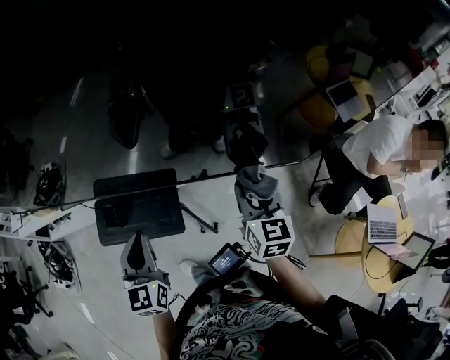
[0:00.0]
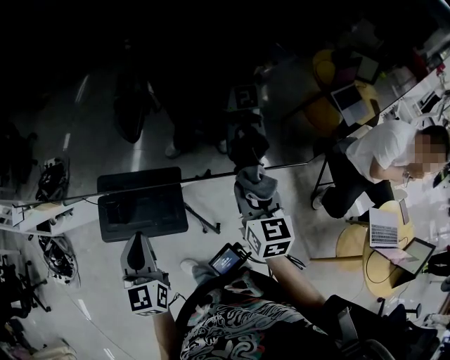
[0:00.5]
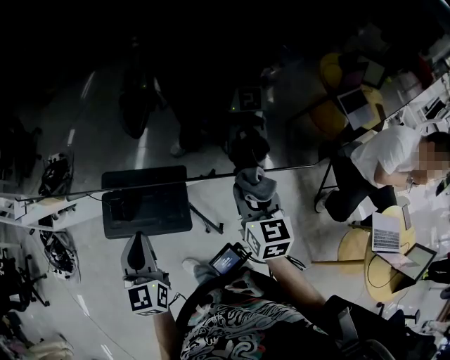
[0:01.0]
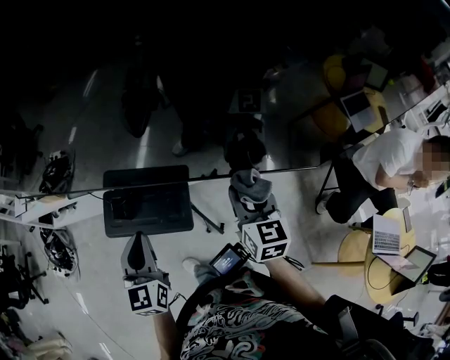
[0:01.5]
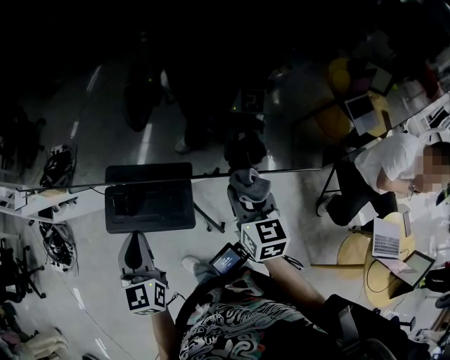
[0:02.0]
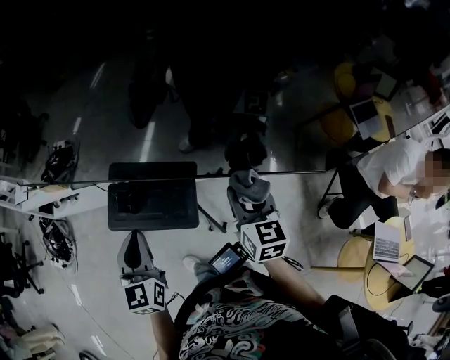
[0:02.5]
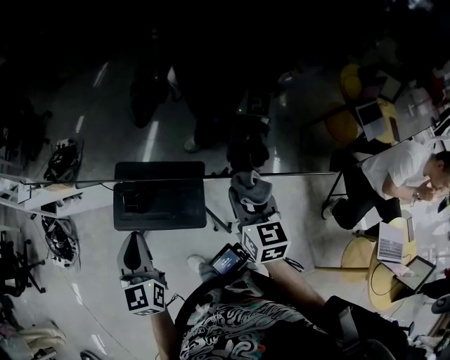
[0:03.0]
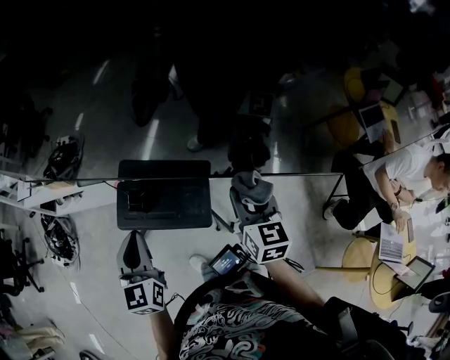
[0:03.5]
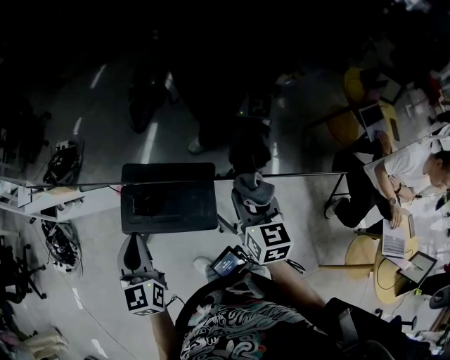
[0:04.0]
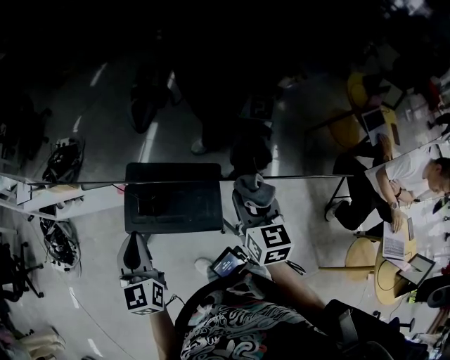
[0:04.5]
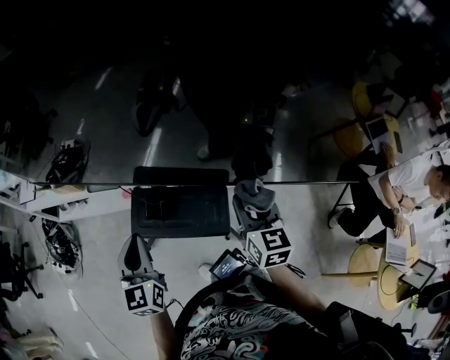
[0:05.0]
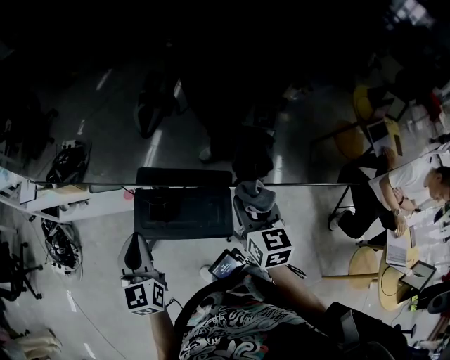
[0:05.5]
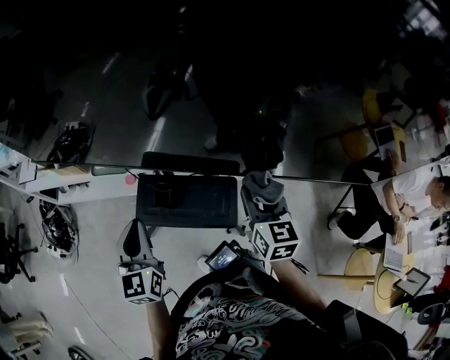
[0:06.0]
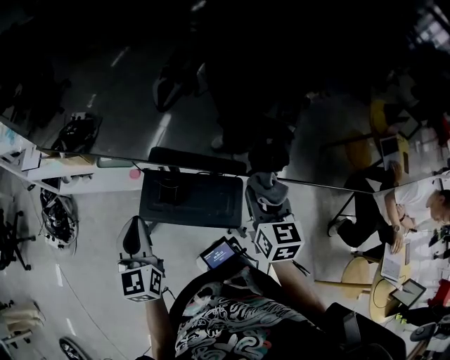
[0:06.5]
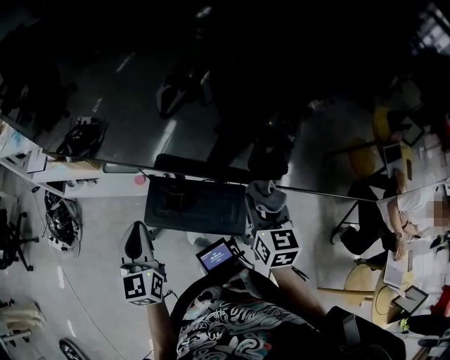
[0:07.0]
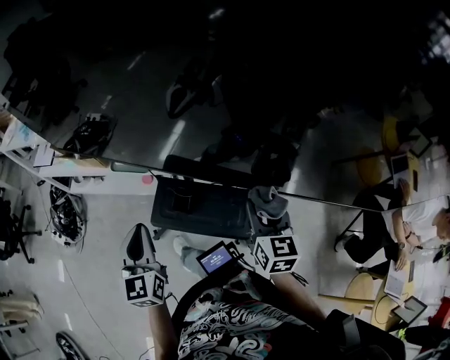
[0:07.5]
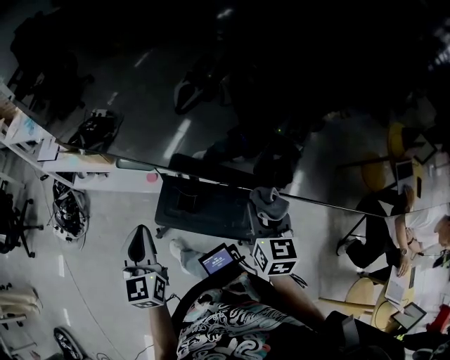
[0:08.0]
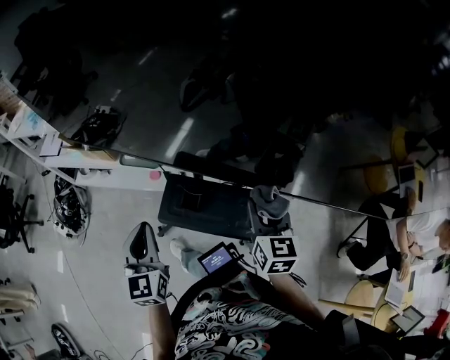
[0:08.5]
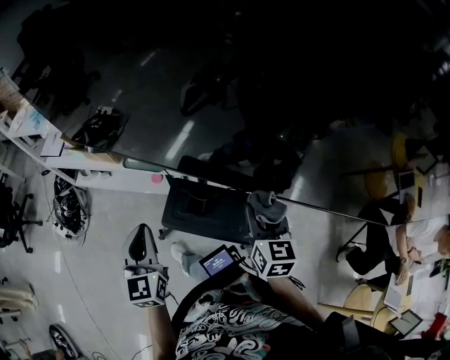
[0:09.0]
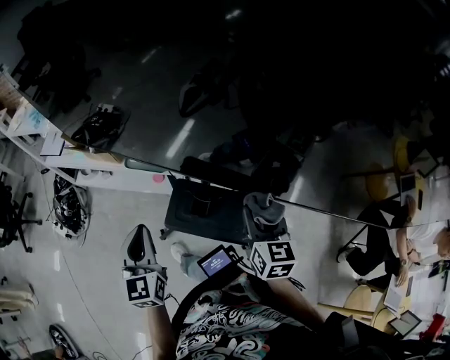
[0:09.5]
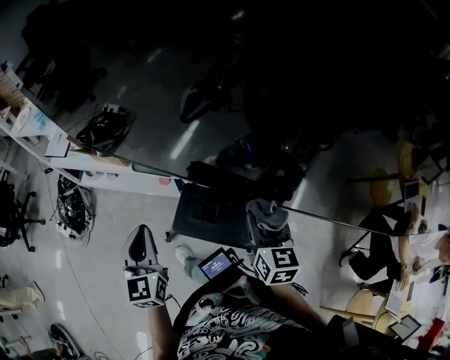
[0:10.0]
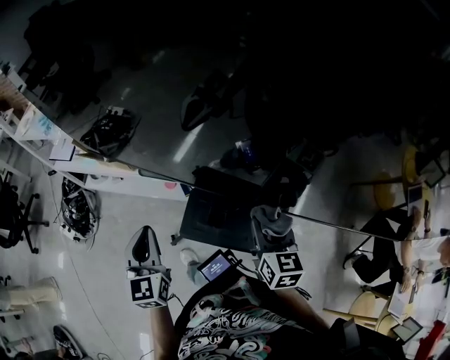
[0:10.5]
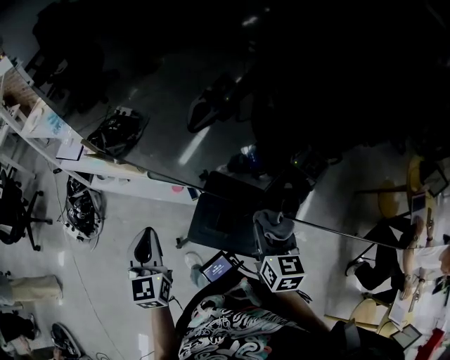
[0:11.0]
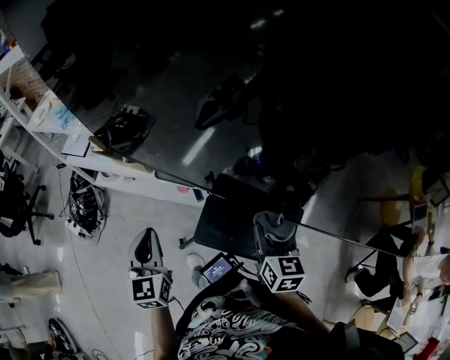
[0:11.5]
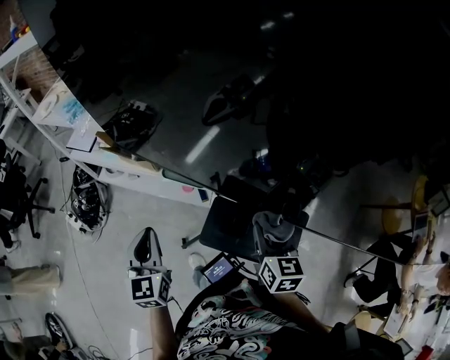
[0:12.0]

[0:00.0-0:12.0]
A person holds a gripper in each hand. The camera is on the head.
0:00.0 to 0:02.0: Both grippers travel together to the left, some 5 cm.
0:02.0 to 0:04.0: Both grippers move to the left, some 10 cm.
0:04.0 to 0:06.0: The two grippers go roughly 10 cm to the left.
0:06.0 to 0:08.0: Both grippers move to the left, roughly 5 cm.
0:08.0 to 0:10.0: The grippers both shift to the left and forward by some 10 cm.
0:10.0 to 0:12.0: The left gripper shifts some 10 cm to the left, while the right gripper moves to the left and forward, about 10 cm.

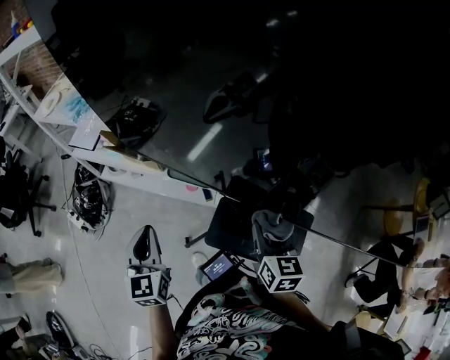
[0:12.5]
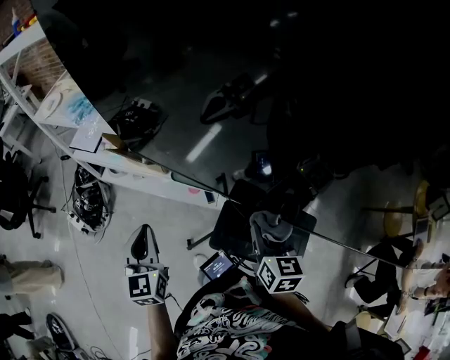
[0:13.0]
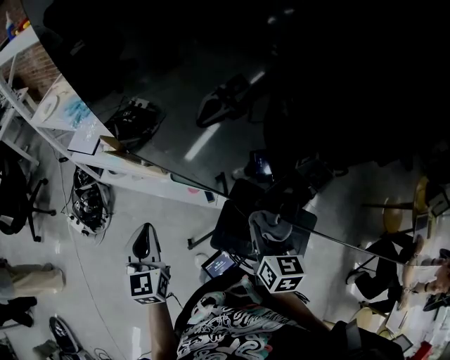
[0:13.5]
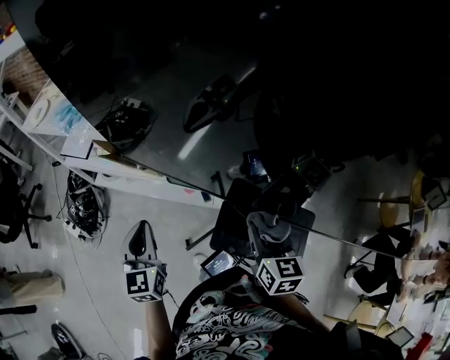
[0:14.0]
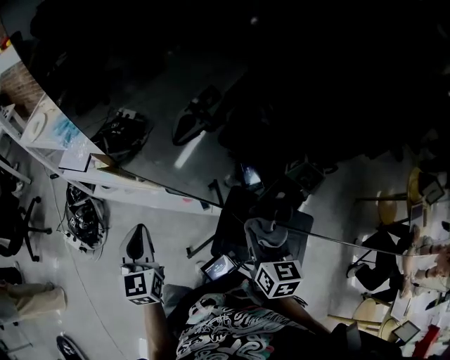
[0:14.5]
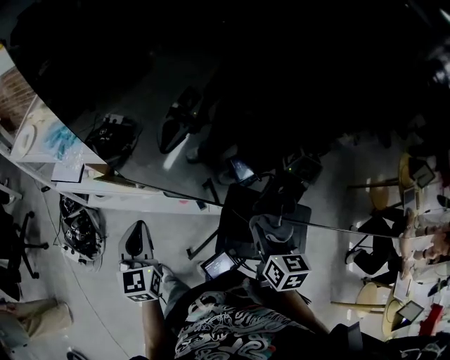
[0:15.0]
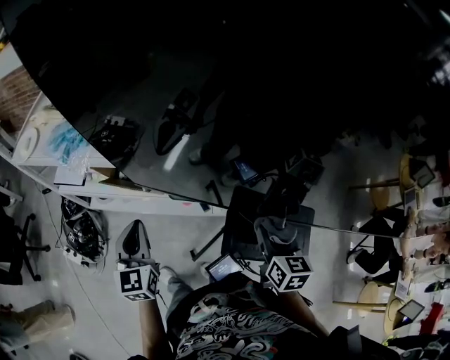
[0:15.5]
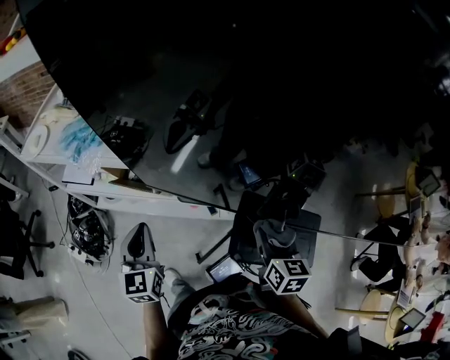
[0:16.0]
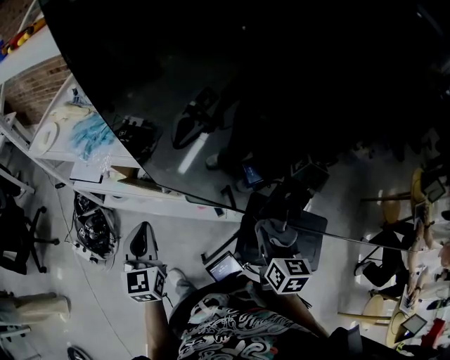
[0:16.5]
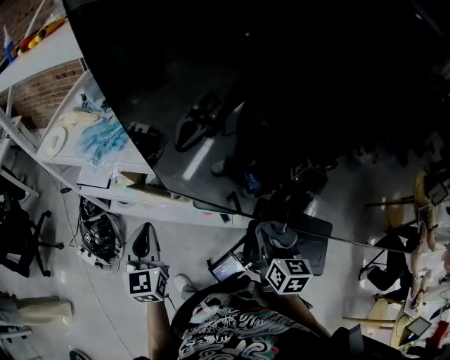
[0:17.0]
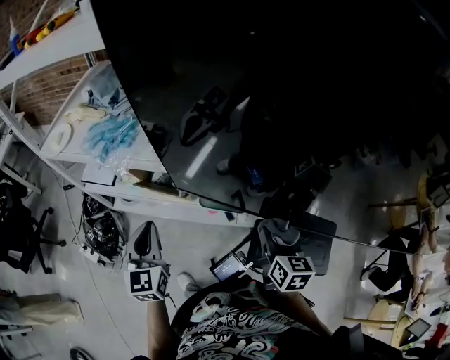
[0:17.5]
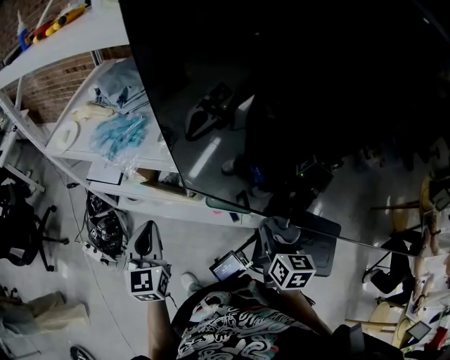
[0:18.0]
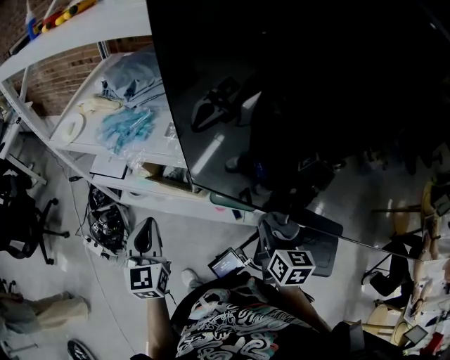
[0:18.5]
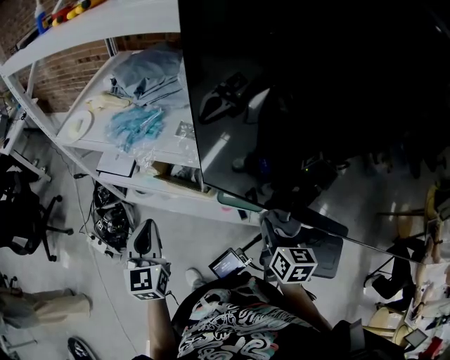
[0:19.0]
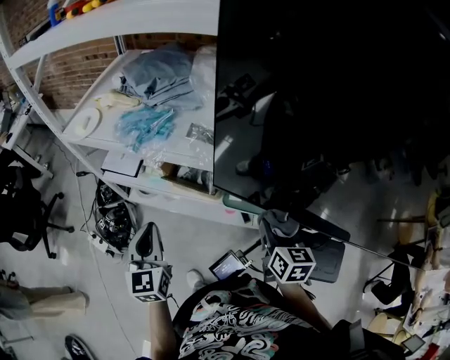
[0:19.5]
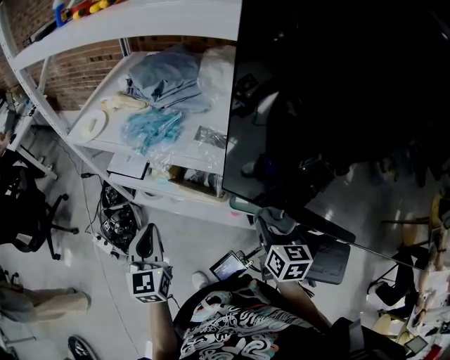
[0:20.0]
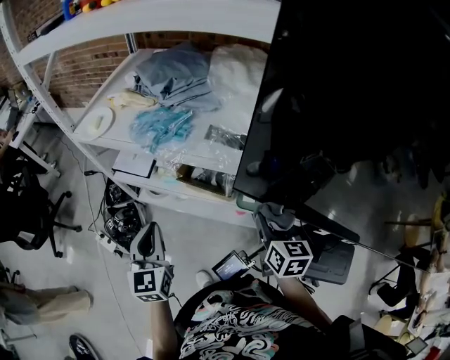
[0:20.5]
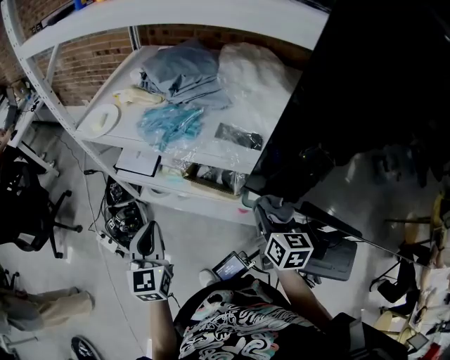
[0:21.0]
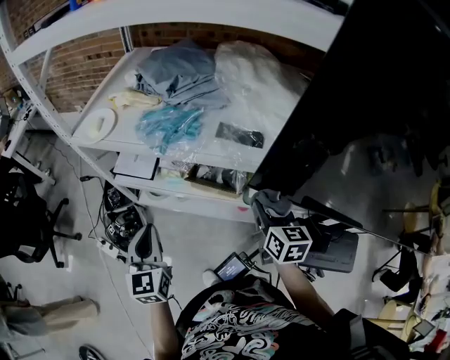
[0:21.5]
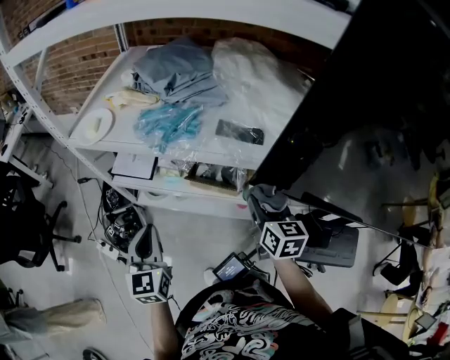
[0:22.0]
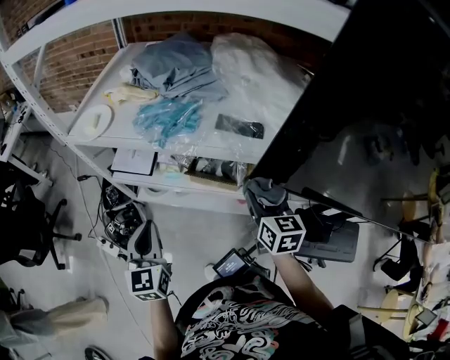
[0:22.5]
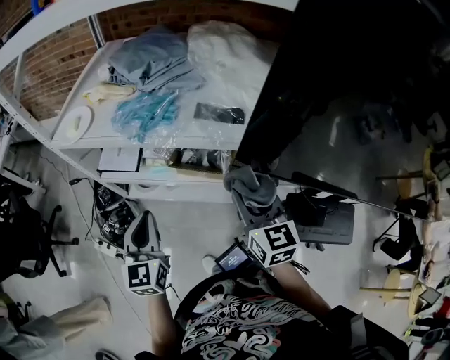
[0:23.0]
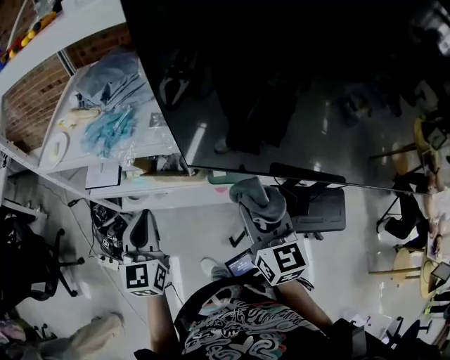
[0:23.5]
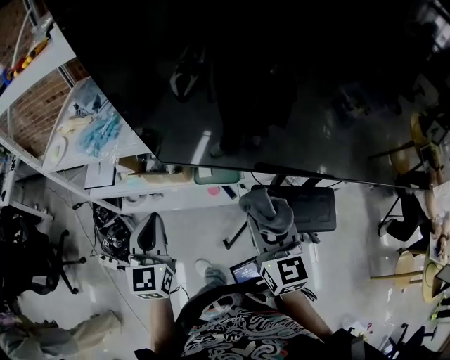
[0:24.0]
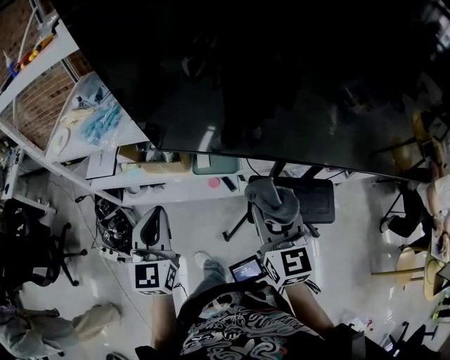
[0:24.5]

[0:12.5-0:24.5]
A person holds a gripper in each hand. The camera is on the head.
0:12.5 to 0:14.5: The right gripper moves roughly 5 cm; the left gripper heads forward, covering approximately 5 cm.
0:14.5 to 0:16.5: The left gripper heads to the left and forward, covering roughly 10 cm, while the right gripper shifts some 5 cm to the left.
0:16.5 to 0:18.5: The grippers both shift to the left by approximately 10 cm.
0:18.5 to 0:20.5: The right gripper is displaced to the left and forward by roughly 15 cm; the left gripper travels to the left by about 10 cm.
0:20.5 to 0:22.5: The grippers both shift to the left by approximately 10 cm.
0:22.5 to 0:24.5: The right gripper is displaced backward, to the right and upward by roughly 35 cm, and rotates some 20 degrees, while the left gripper goes some 35 cm to the right and backward, and swivels roughly 20 degrees.

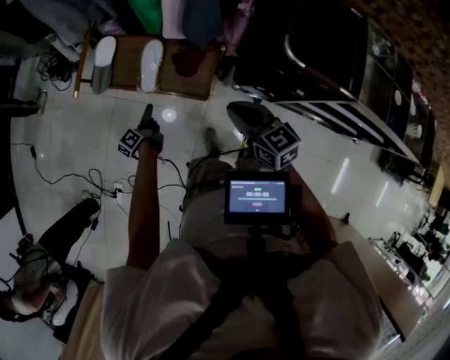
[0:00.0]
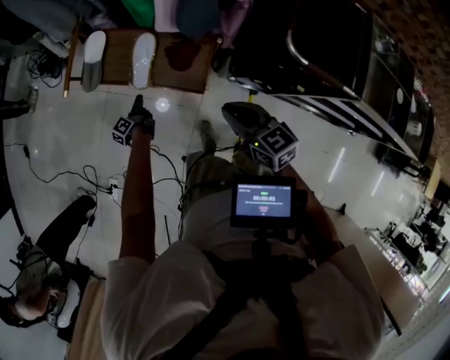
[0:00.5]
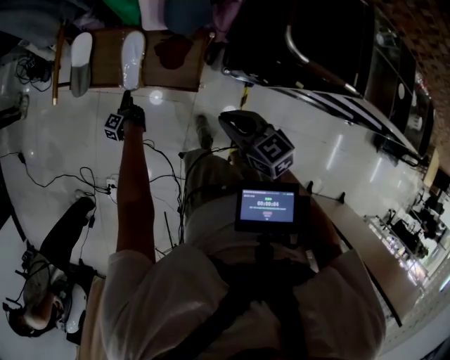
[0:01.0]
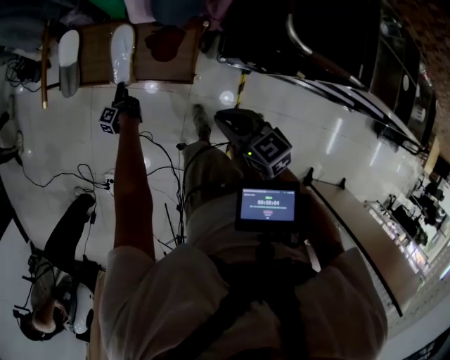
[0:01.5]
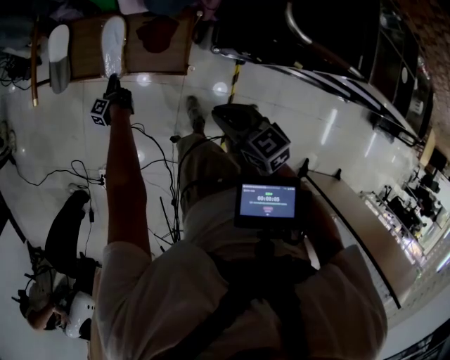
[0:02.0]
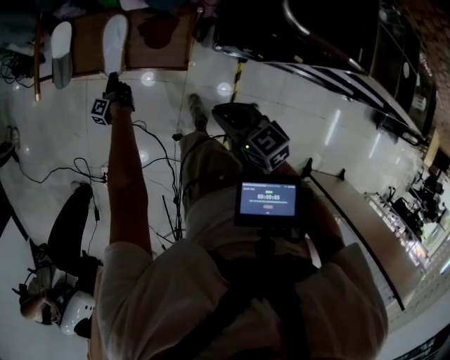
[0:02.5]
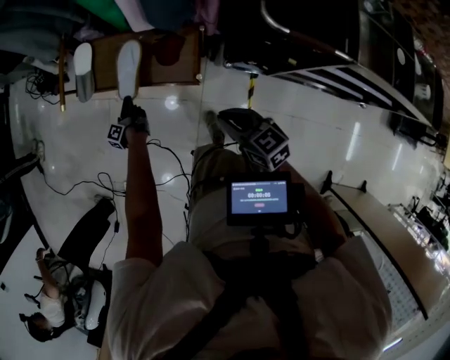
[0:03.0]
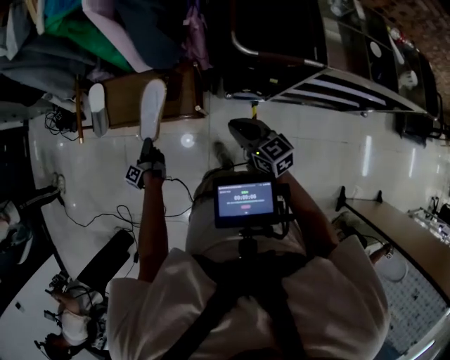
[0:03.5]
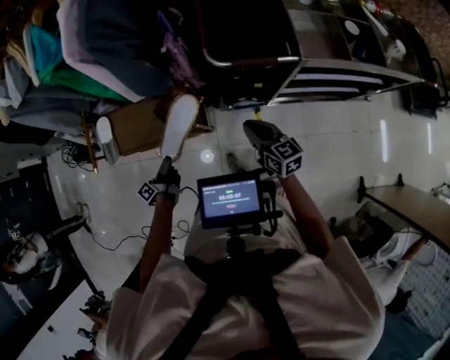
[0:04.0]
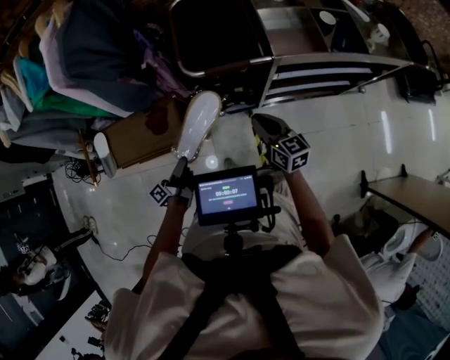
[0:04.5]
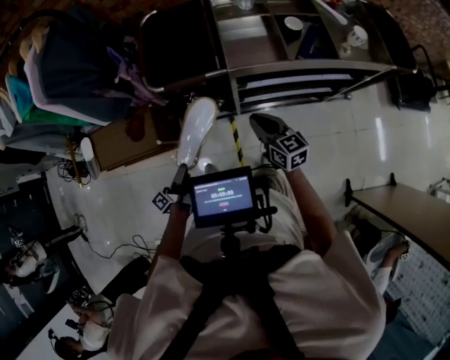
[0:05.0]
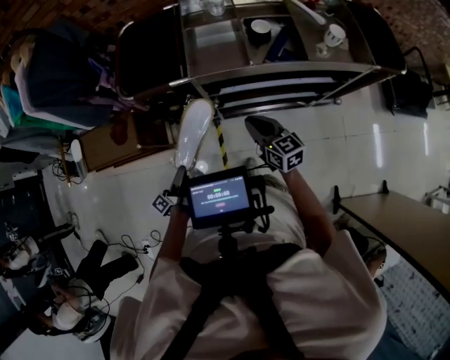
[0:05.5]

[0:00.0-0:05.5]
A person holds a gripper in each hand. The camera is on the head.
0:00.0 to 0:02.0: The right gripper moves downward, about 10 cm.
0:02.0 to 0:03.5: The right gripper ends up roughly 10 cm from where it was.
0:03.5 to 0:05.5: The right gripper changes place by roughly 50 cm.
